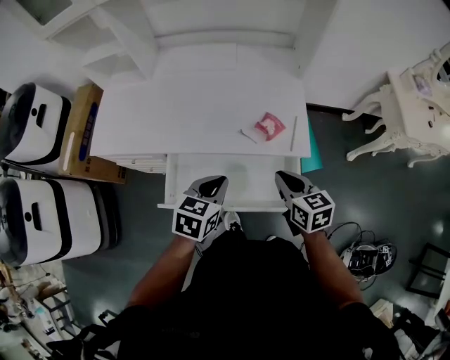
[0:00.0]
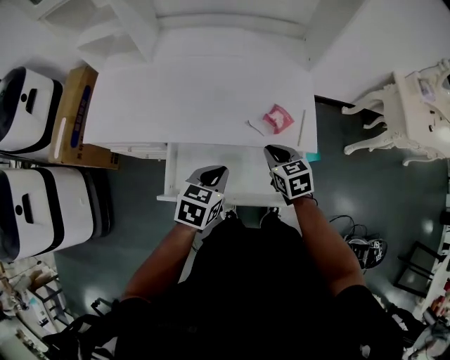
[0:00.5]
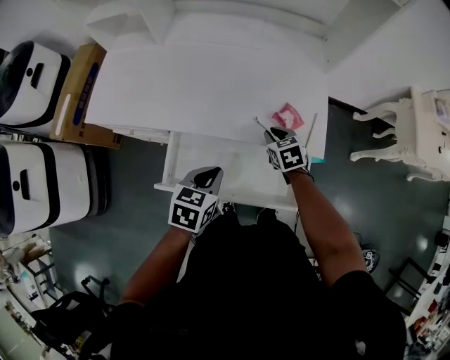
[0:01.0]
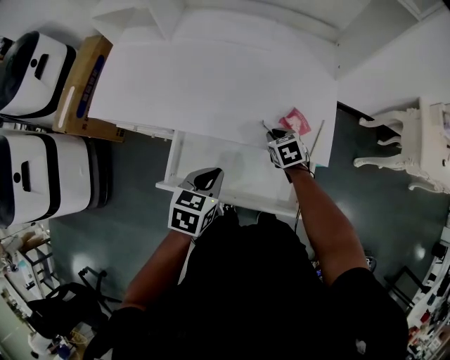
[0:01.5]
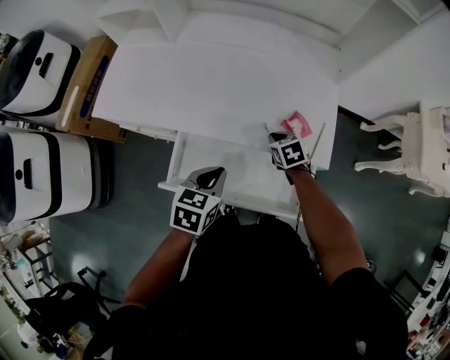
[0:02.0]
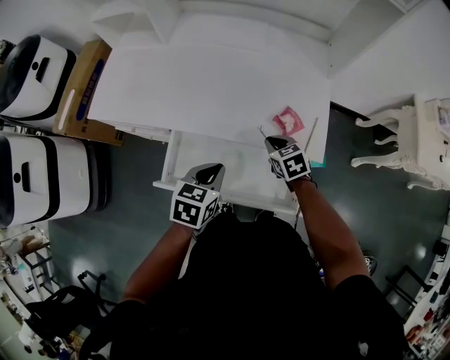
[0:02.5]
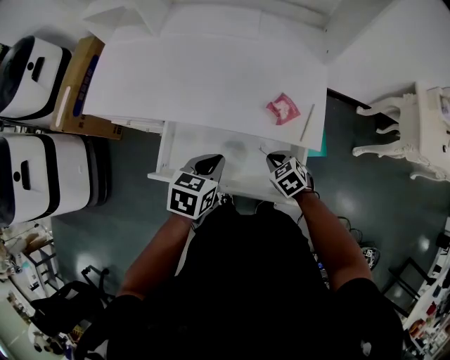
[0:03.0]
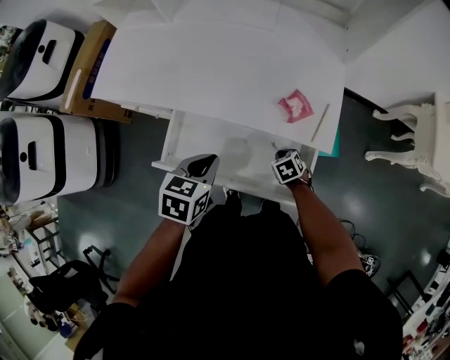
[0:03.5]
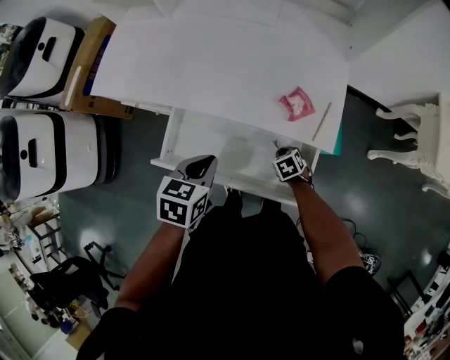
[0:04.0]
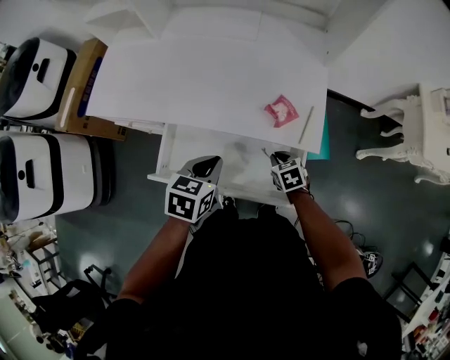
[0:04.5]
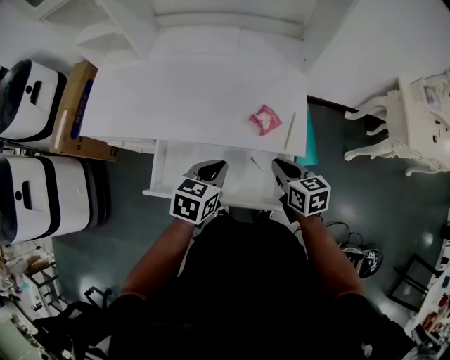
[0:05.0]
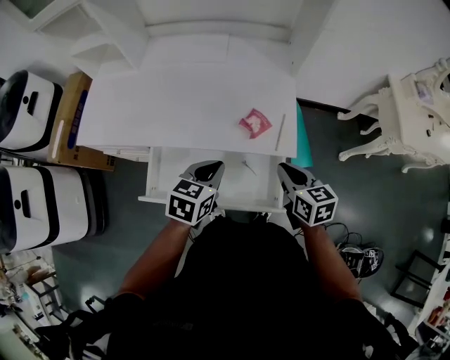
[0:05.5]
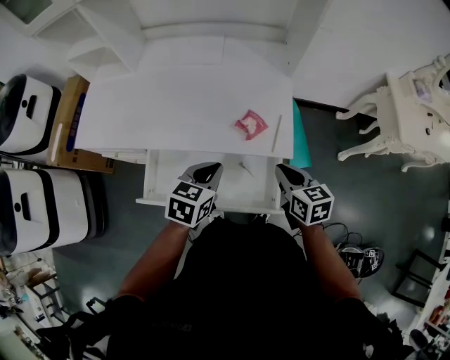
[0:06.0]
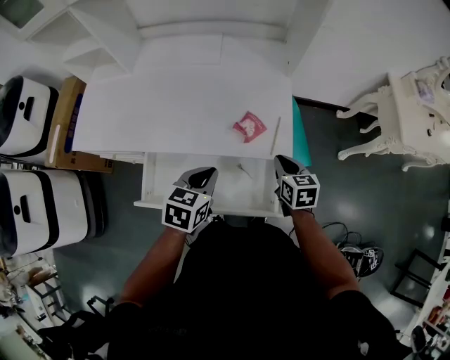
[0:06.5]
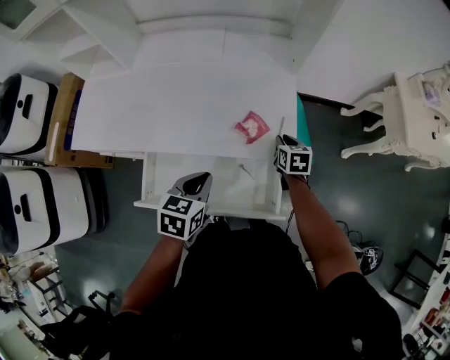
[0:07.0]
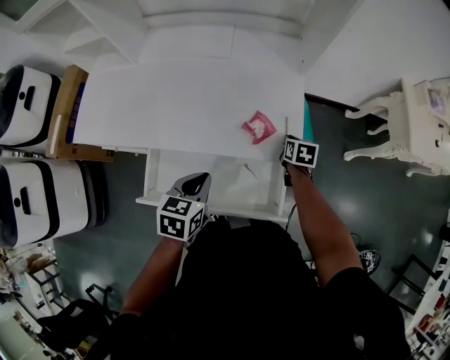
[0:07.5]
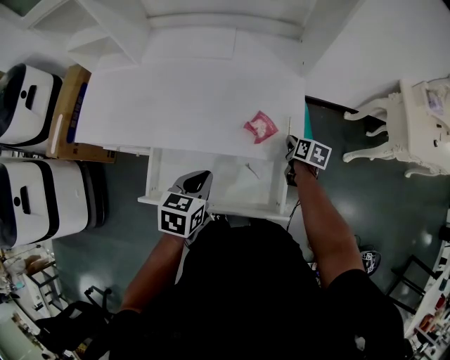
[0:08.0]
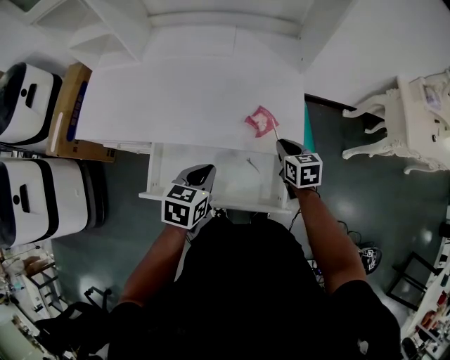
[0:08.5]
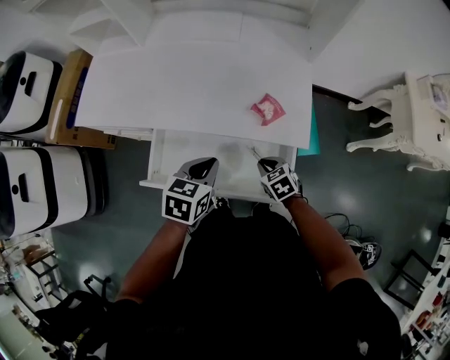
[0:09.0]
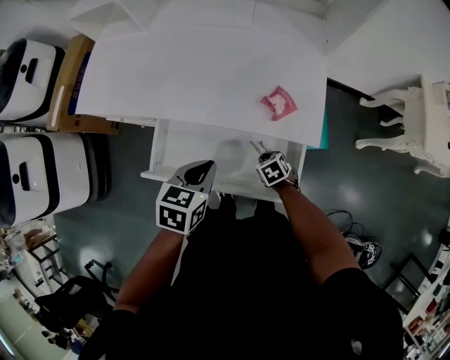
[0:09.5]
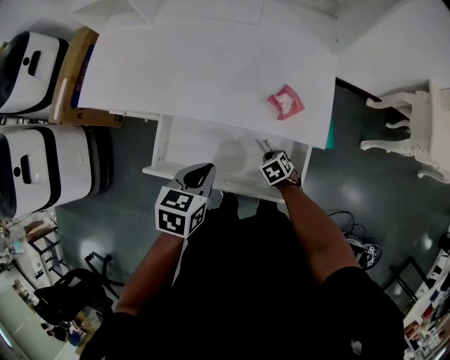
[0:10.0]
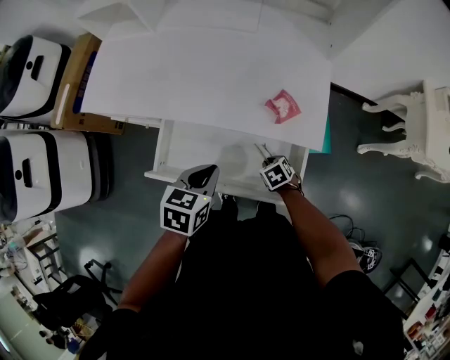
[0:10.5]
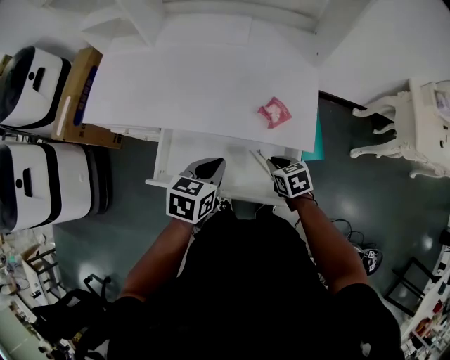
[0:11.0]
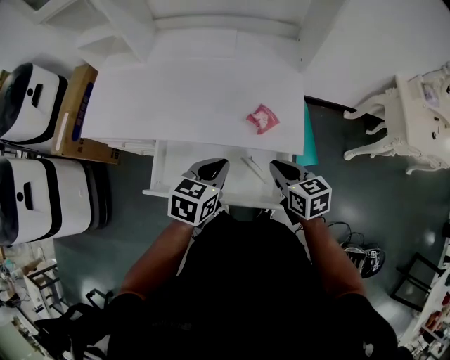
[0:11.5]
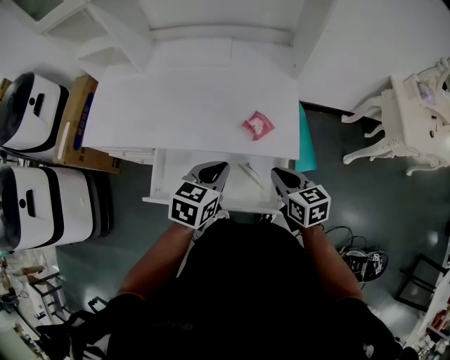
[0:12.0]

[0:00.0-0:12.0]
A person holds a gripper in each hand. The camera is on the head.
0:00.0 to 0:02.0: The left gripper moves to the left, some 5 cm, while the right gripper moves downward, forward and to the left, some 25 cm, and rotates approximately 30 degrees.
0:02.0 to 0:04.0: The right gripper goes some 20 cm downward, backward and to the right.
0:04.0 to 0:06.0: The left gripper travels to the right by some 10 cm. Meanwhile the right gripper goes about 30 cm upward, and angles its fingers upward, by roughly 40 degrees.
0:06.0 to 0:08.0: The right gripper goes roughly 20 cm forward and downward, and turns by roughly 30 degrees; the left gripper goes about 5 cm to the left.
0:08.0 to 0:10.0: The right gripper moves to the left, backward and downward, some 25 cm, and twists about 50 degrees counterclockwise, seen from behind; the left gripper changes place by roughly 5 cm.
0:10.0 to 0:12.0: The right gripper goes about 30 cm upward, and points its fingers about 40 degrees further upward. The left gripper heads to the right and upward, covering roughly 10 cm.

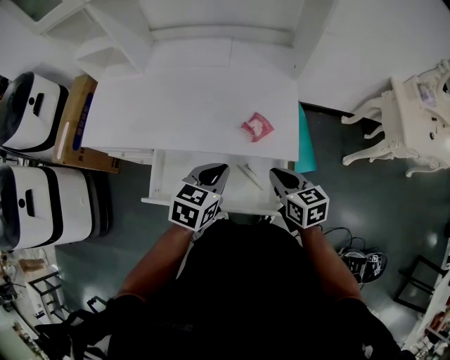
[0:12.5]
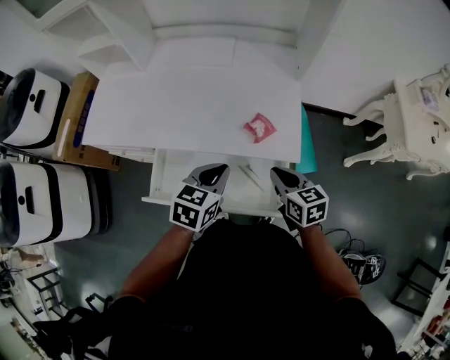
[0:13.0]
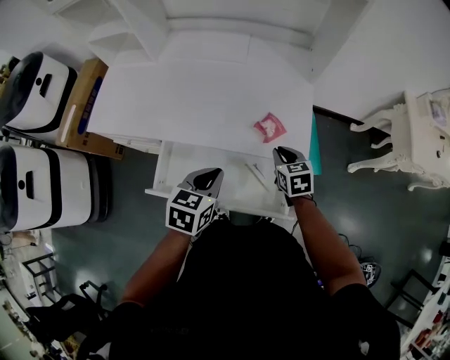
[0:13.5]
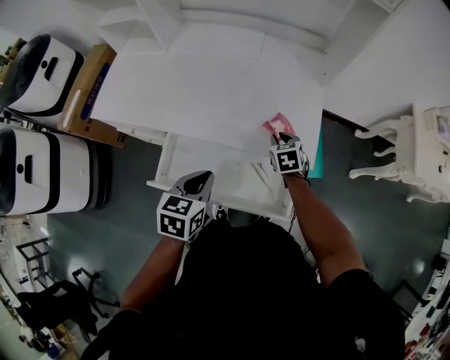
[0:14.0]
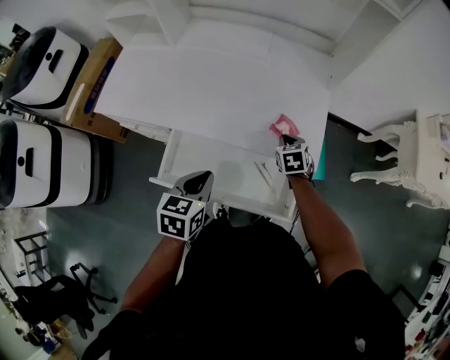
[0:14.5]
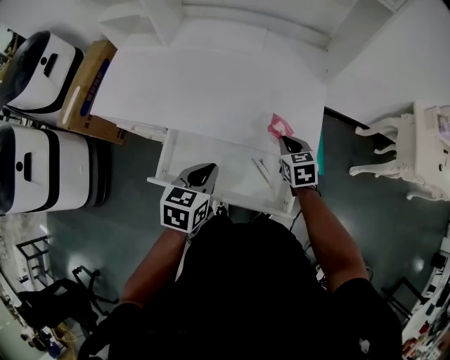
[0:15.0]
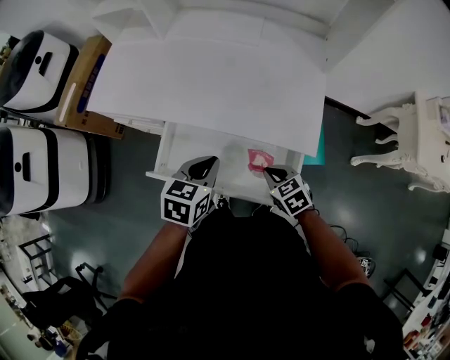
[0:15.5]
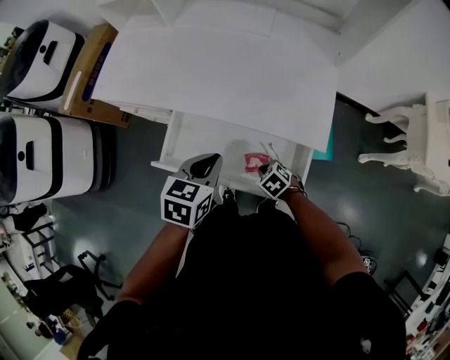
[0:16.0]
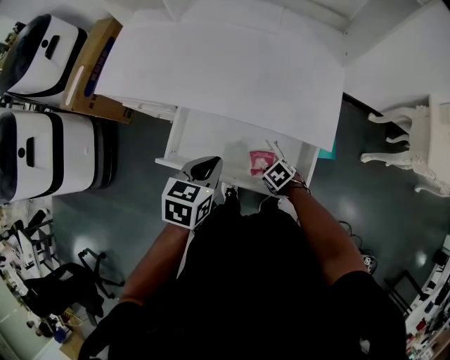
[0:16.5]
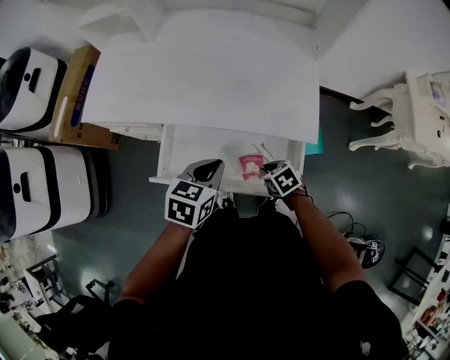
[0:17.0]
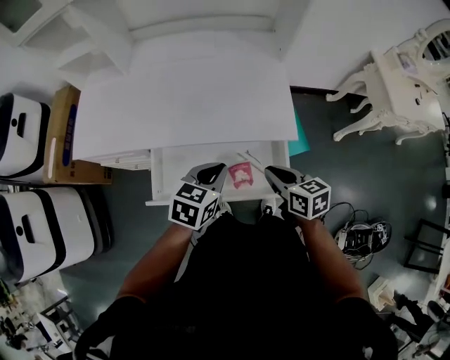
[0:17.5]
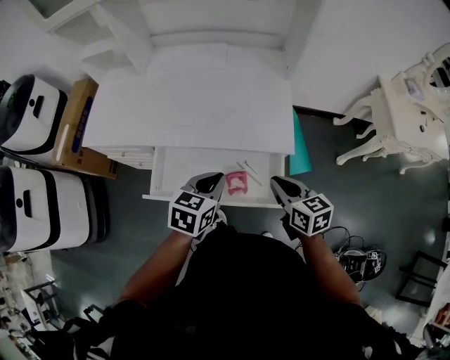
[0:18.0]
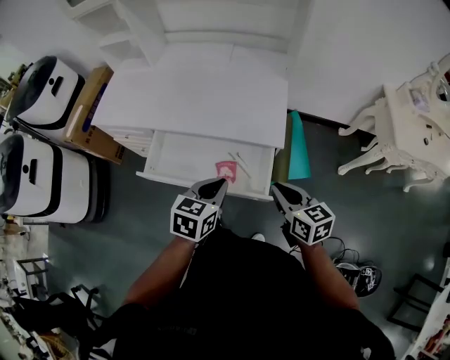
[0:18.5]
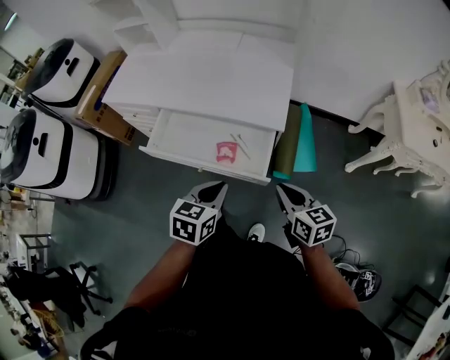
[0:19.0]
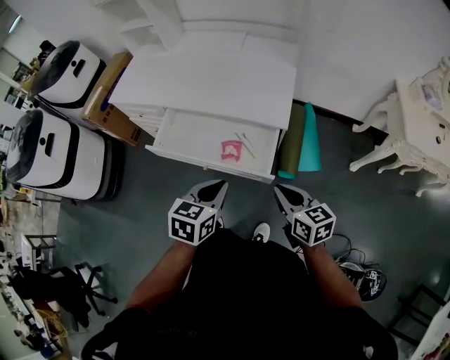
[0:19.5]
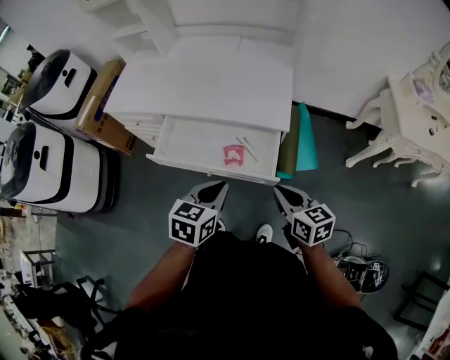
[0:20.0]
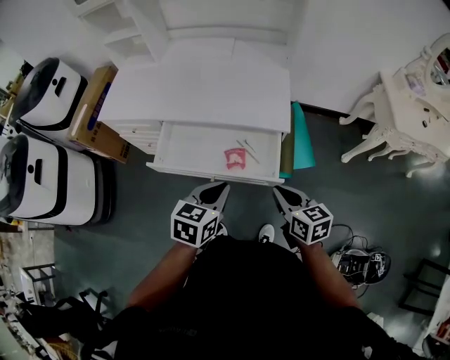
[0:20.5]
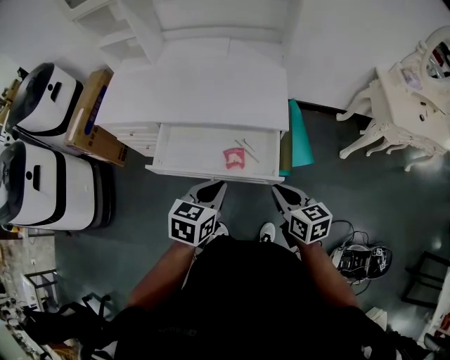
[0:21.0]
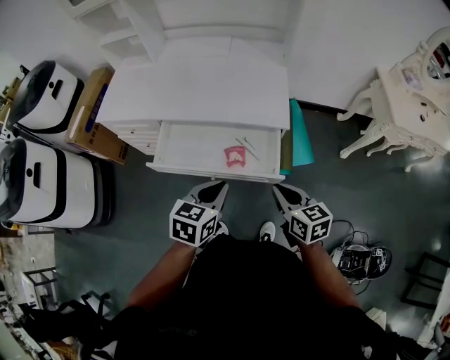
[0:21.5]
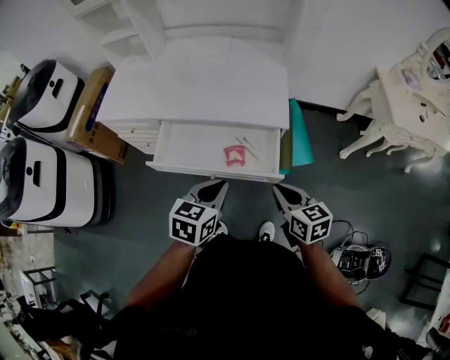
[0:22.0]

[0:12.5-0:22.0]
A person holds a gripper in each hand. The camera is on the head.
0:12.5 to 0:14.5: The left gripper moves to the left, some 10 cm. Meanwhile the right gripper is displaced forward and downward by roughly 20 cm, and changes its angle by roughly 30 degrees.
0:14.5 to 0:16.5: The right gripper ends up about 25 cm from where it was, and changes its angle by about 40 degrees.
0:16.5 to 0:18.0: The left gripper changes place by about 10 cm; the right gripper is displaced upward by some 30 cm, and tips its fingers upward by roughly 40 degrees.
0:18.0 to 0:20.0: The grippers both shift backward by approximately 15 cm.
0:20.0 to 0:22.0: The grippers move only a little.

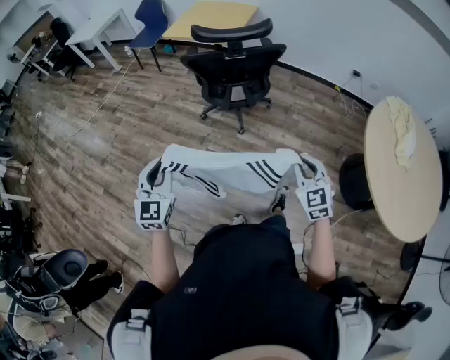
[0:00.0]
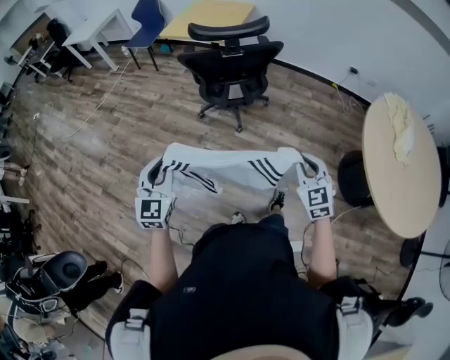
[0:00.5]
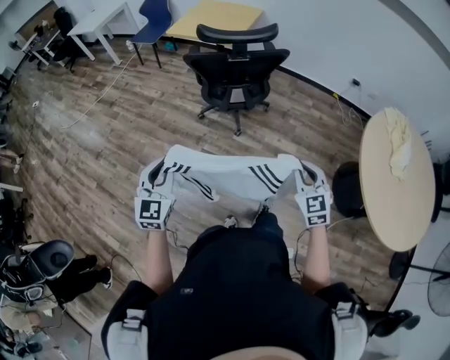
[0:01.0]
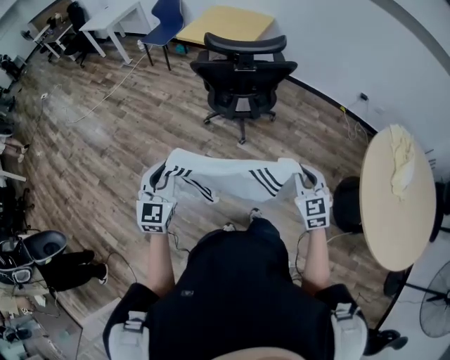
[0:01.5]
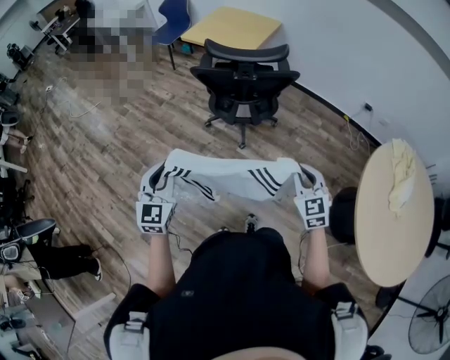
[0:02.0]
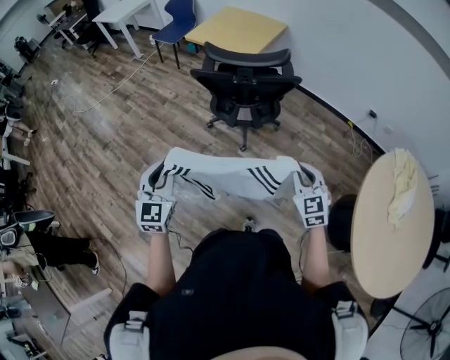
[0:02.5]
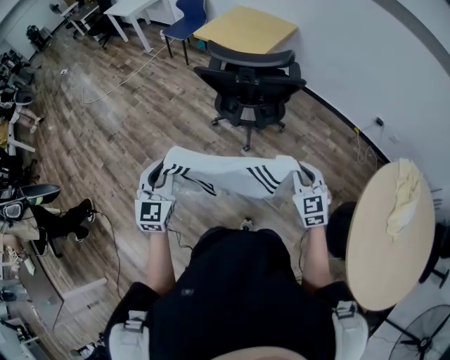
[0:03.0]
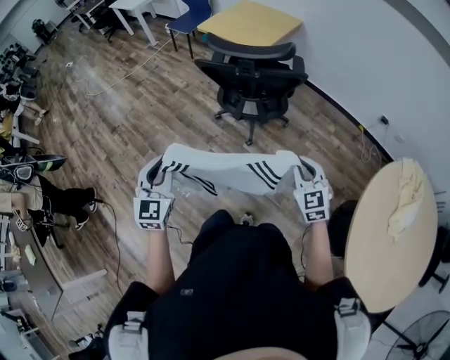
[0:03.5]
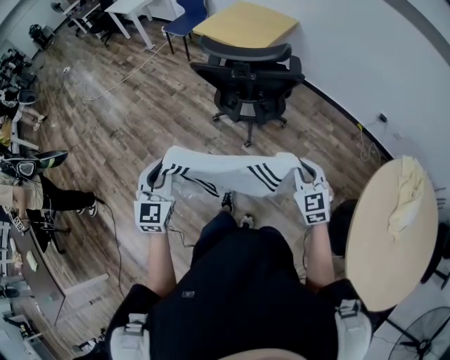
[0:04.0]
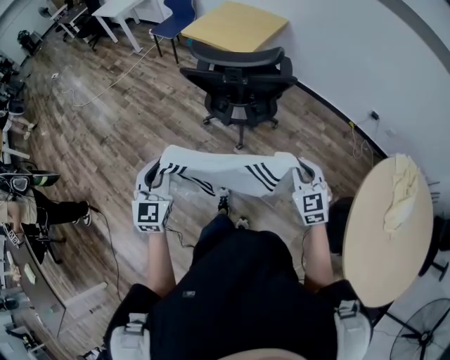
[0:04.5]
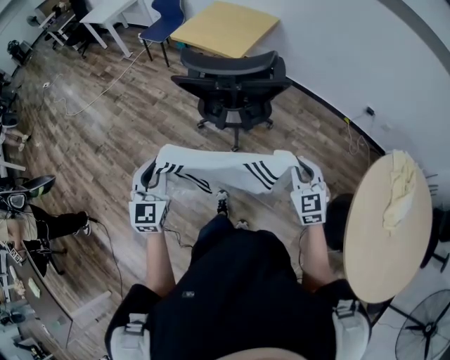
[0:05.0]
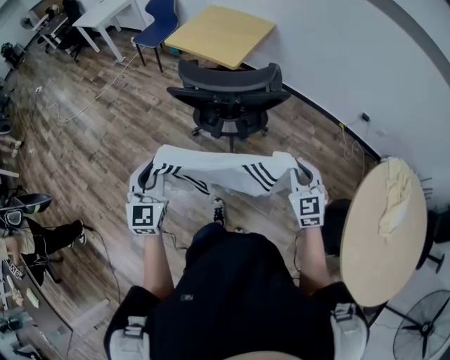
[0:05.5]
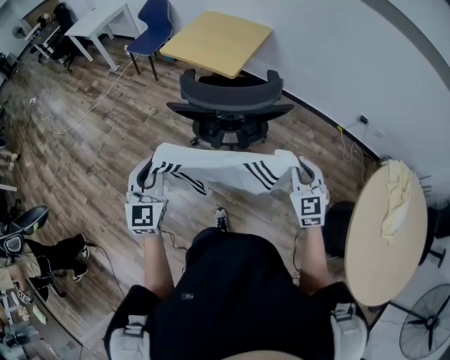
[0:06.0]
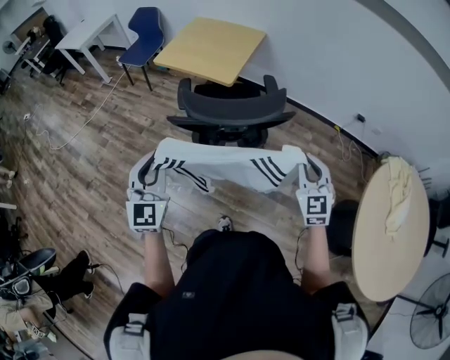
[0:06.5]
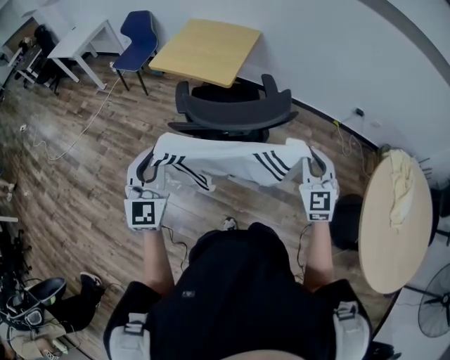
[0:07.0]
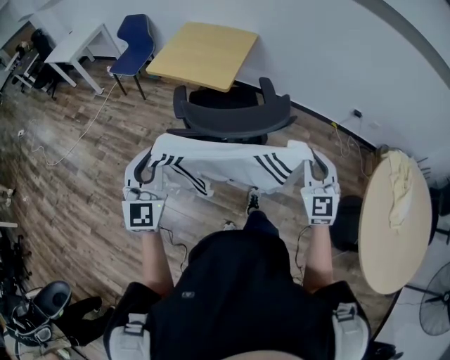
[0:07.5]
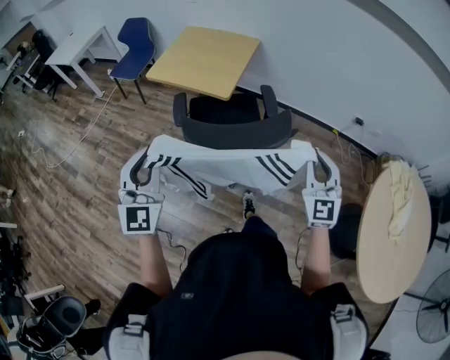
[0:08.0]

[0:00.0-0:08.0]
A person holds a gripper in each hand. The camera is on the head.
0:00.0 to 0:02.0: The right gripper goes some 10 cm forward, while the left gripper shifts by roughly 5 cm.
0:02.0 to 0:04.0: The left gripper moves to the right, approximately 5 cm. Meanwhile the right gripper goes roughly 10 cm to the right and forward.
0:04.0 to 0:06.0: Both grippers move forward, some 20 cm.
0:06.0 to 0:08.0: The grippers both shift forward and upward by some 15 cm.
